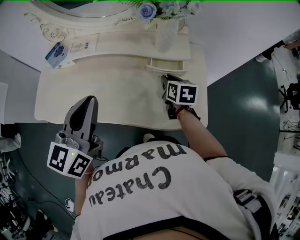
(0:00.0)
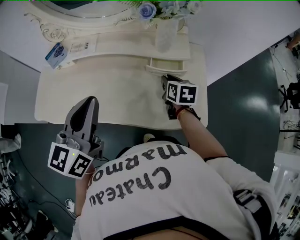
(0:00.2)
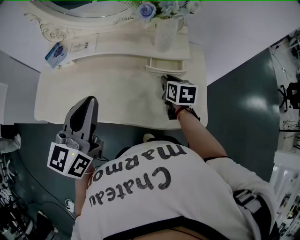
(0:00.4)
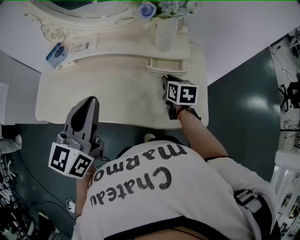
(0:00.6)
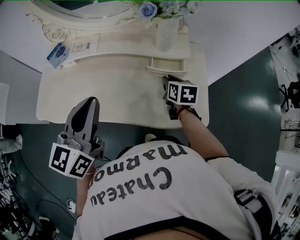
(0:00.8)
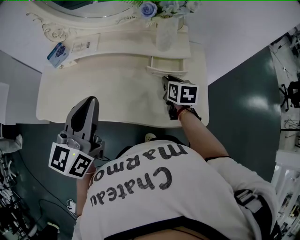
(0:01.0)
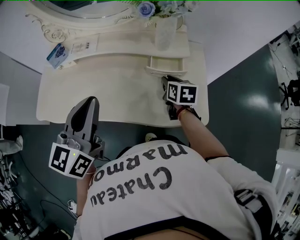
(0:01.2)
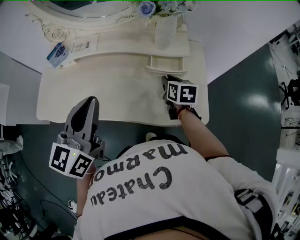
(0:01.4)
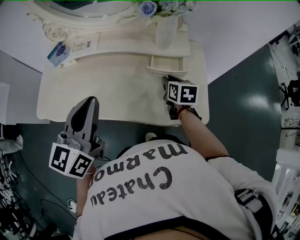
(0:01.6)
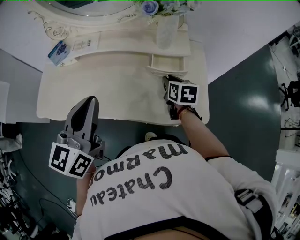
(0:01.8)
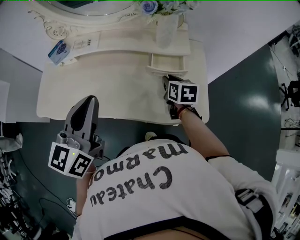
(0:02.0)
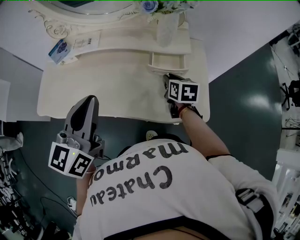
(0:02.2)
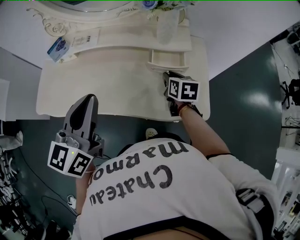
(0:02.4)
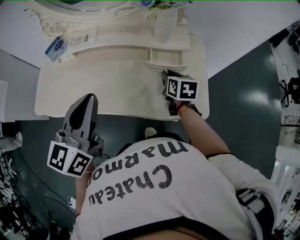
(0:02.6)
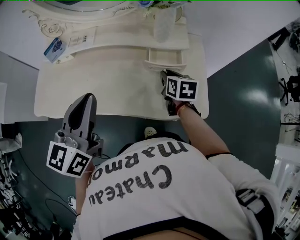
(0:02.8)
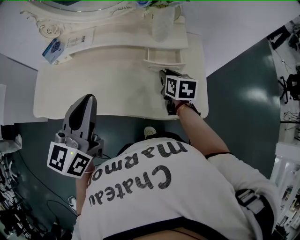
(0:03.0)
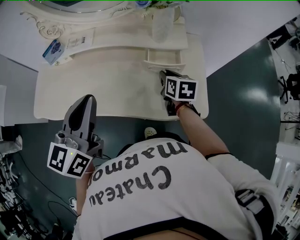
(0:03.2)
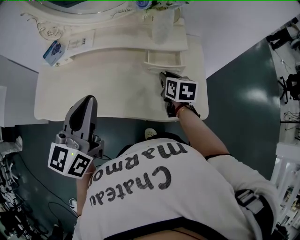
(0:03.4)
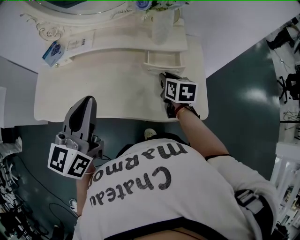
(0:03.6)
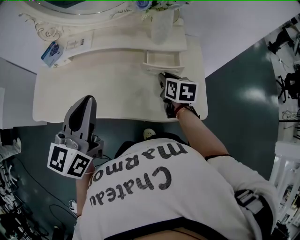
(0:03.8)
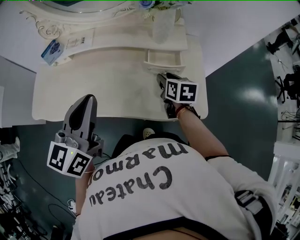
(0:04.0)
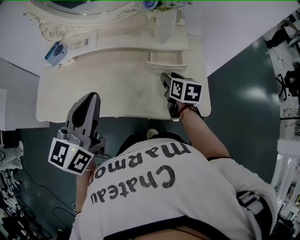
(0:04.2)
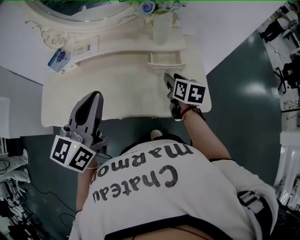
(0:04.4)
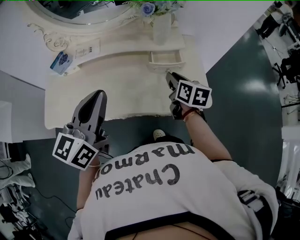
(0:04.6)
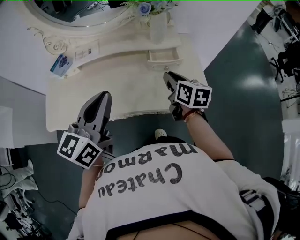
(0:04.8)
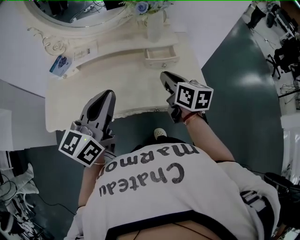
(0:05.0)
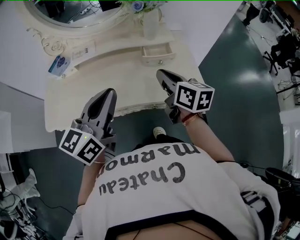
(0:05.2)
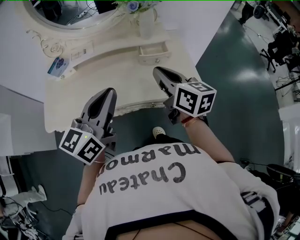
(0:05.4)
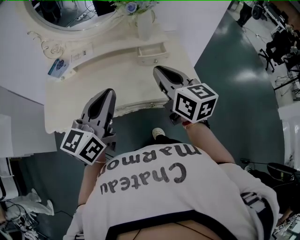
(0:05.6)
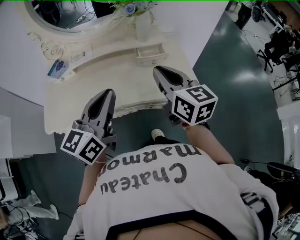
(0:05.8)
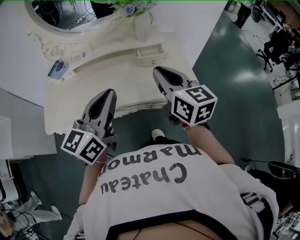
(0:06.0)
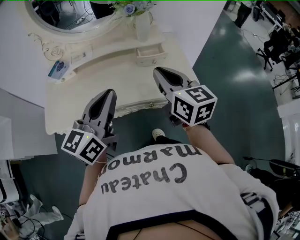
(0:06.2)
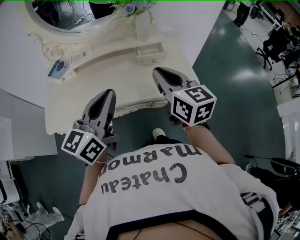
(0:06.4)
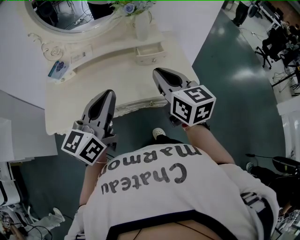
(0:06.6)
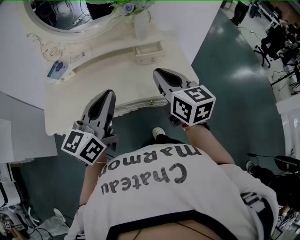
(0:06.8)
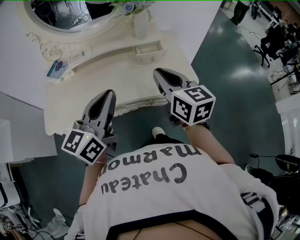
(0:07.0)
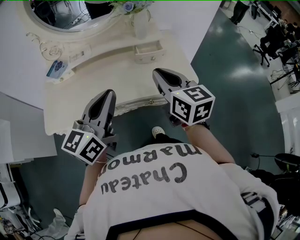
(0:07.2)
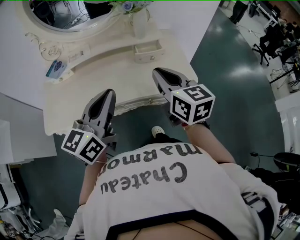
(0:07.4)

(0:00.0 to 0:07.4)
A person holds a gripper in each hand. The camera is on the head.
0:00.0 - 0:01.4: There are only small adjustments of the grippers.
0:01.4 - 0:03.0: Both grippers stay about where they are.
0:03.0 - 0:04.4: The right gripper ends up approximately 5 cm from where it was.
0:04.4 - 0:06.0: The right gripper is displaced upward and backward by approximately 25 cm, changes its angle by roughly 30 degrees, and closes up. The left gripper shifts some 10 cm backward.
0:06.0 - 0:07.4: There are only small adjustments of the grippers.

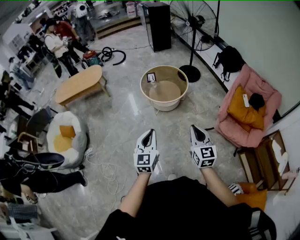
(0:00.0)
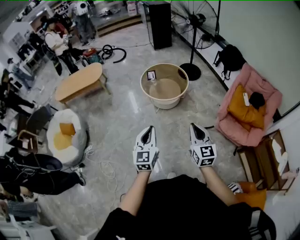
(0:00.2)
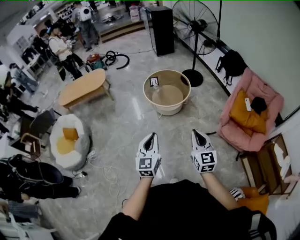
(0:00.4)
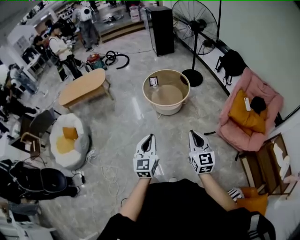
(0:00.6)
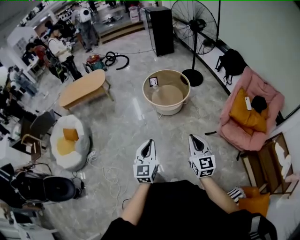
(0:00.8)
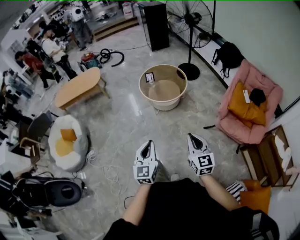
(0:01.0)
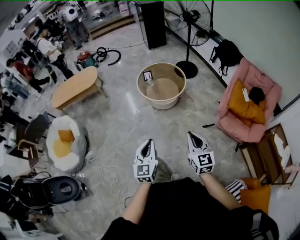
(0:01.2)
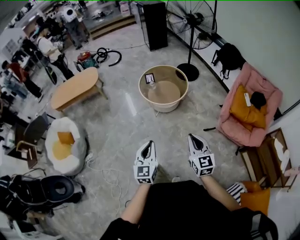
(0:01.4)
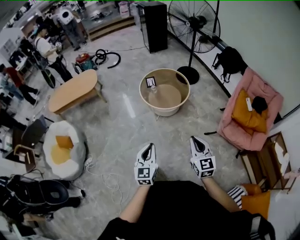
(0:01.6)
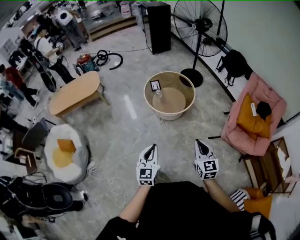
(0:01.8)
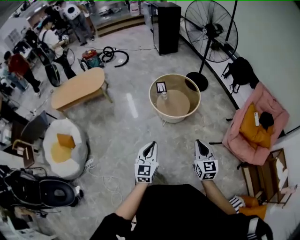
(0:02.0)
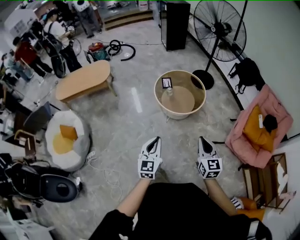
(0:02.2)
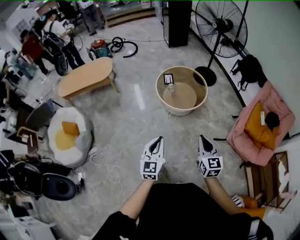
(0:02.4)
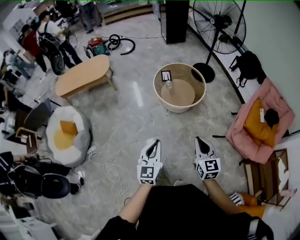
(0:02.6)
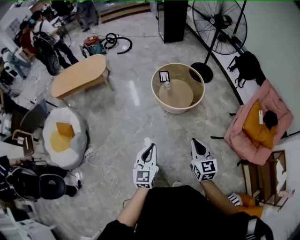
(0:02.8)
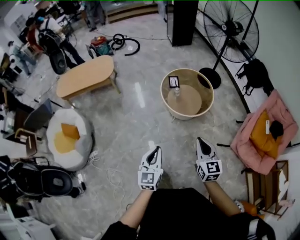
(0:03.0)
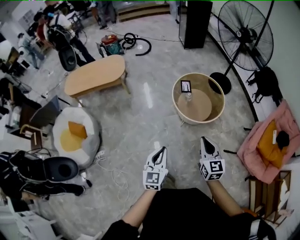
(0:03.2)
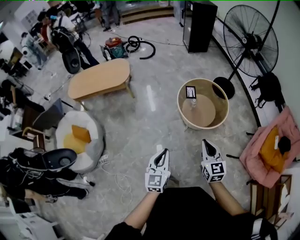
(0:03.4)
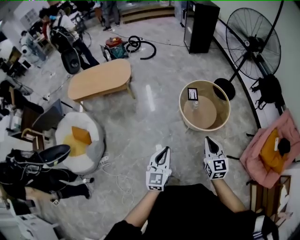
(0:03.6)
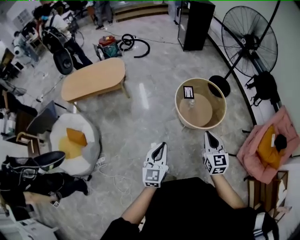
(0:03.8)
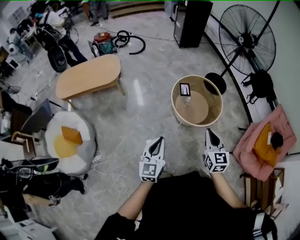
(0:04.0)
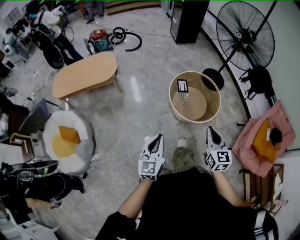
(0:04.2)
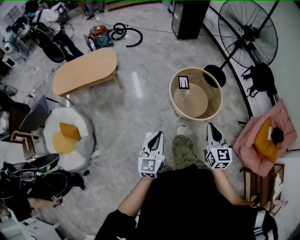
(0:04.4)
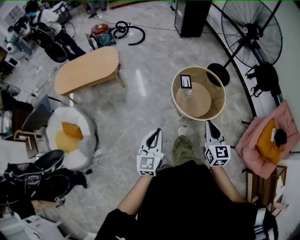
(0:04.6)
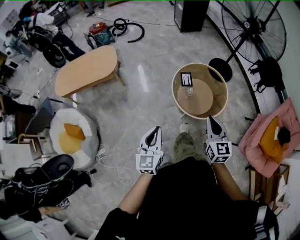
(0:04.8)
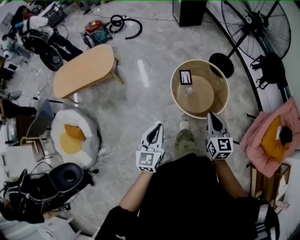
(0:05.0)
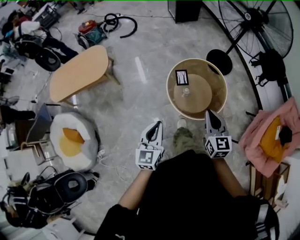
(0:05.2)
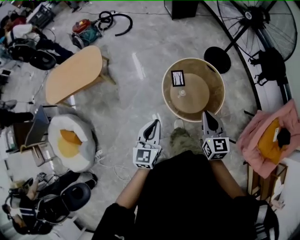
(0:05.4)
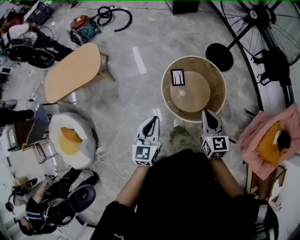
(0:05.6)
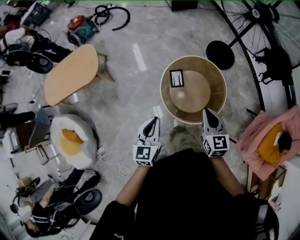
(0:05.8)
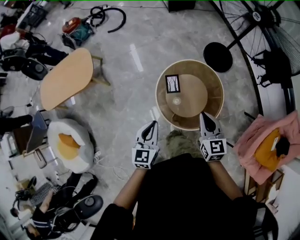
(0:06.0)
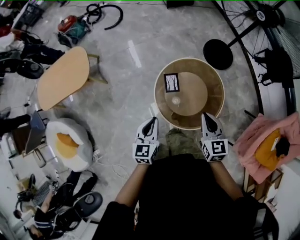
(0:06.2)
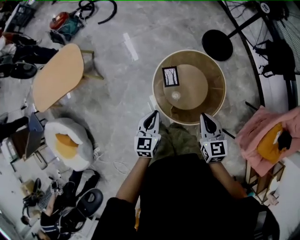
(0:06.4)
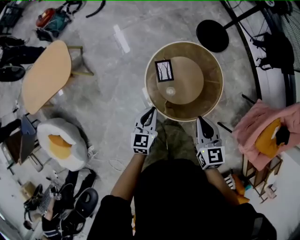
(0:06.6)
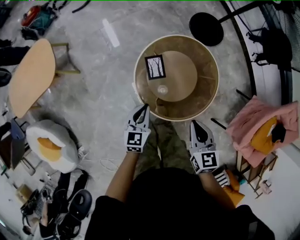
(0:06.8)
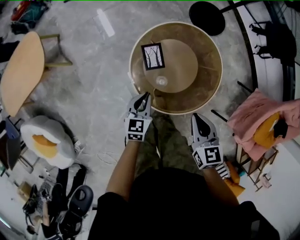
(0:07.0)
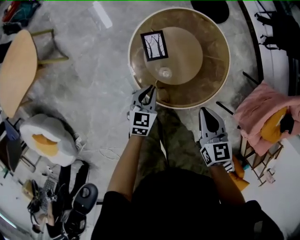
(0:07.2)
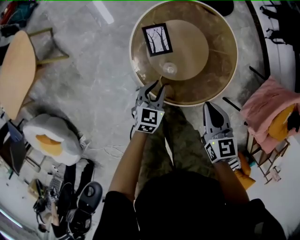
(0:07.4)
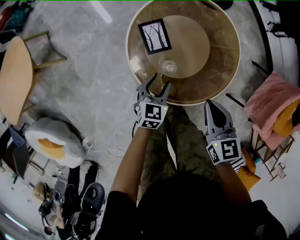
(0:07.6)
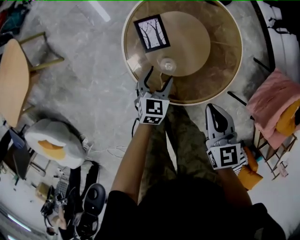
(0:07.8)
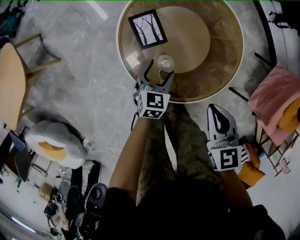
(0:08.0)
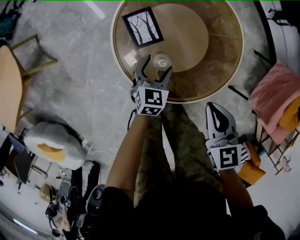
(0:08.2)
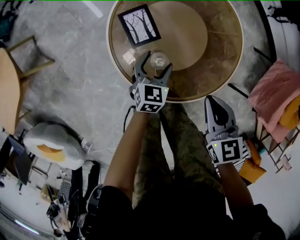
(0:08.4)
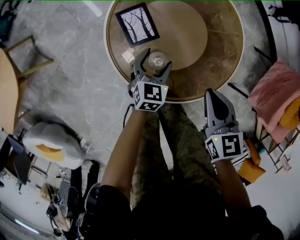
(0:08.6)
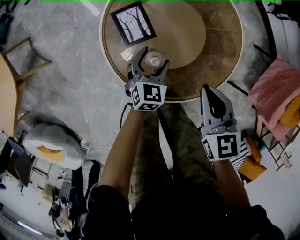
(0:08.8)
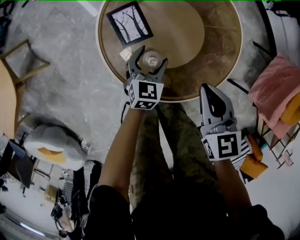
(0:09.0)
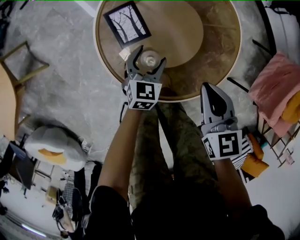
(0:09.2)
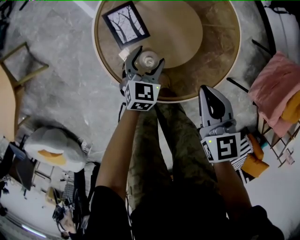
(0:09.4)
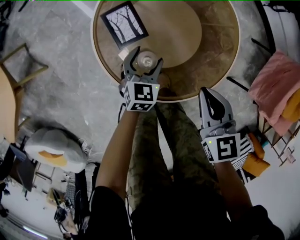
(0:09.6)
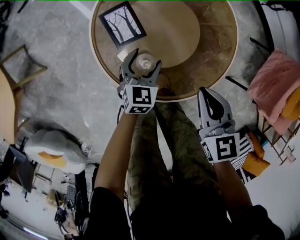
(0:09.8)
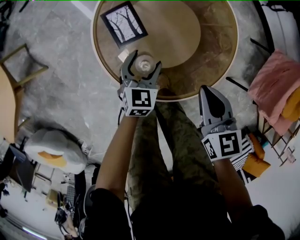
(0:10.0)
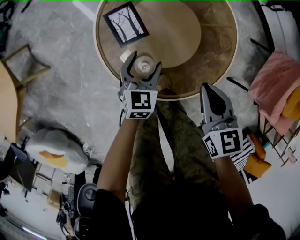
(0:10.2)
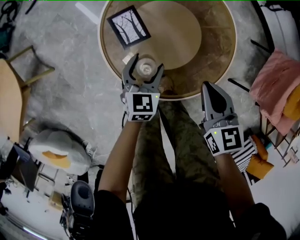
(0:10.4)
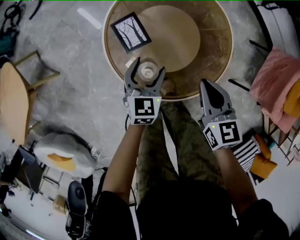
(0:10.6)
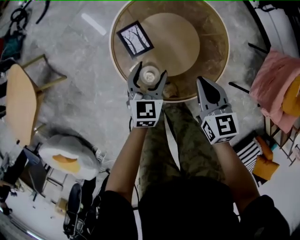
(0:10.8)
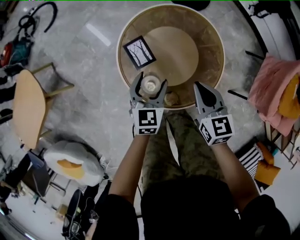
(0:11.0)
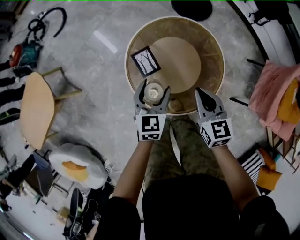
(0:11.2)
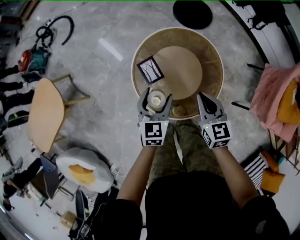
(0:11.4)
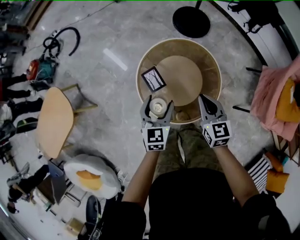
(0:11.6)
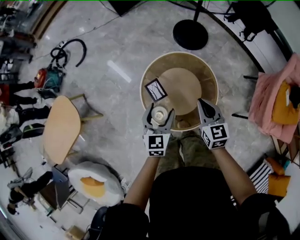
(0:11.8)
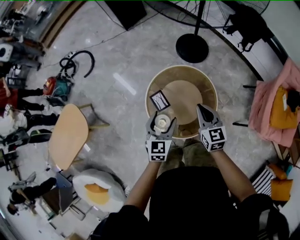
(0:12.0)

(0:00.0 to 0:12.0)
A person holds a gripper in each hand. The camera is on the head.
0:00.0 - 0:01.6: The right gripper travels forward and to the left by approximately 10 cm. Meanwhile the left gripper goes roughly 10 cm to the left, forward and downward.
0:01.6 - 0:03.0: The left gripper swings forward and backward, some 10 cm each way, with 2 reversals; the right gripper is displaced forward and to the left by roughly 20 cm.
0:03.0 - 0:04.4: Both grippers travel together forward and to the left, about 20 cm.
0:04.4 - 0:06.0: The right gripper is displaced forward by approximately 35 cm. The left gripper heads forward and to the right, covering about 40 cm.
0:06.0 - 0:07.6: The two grippers go some 35 cm downward. The left gripper changes its angle by some 30 degrees, and opens its fingers.
0:07.6 - 0:09.0: The right gripper goes roughly 5 cm downward. Meanwhile the left gripper goes approximately 10 cm downward and forward, and opens up.
0:09.0 - 0:10.4: The left gripper travels upward by about 5 cm.
0:10.4 - 0:12.0: The grippers both shift upward by some 35 cm.

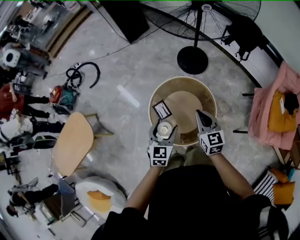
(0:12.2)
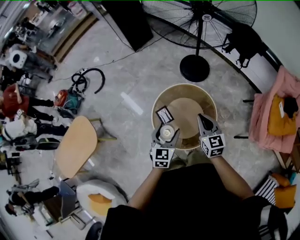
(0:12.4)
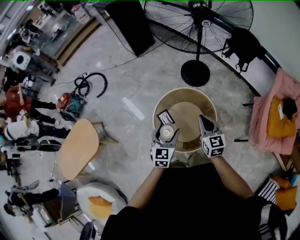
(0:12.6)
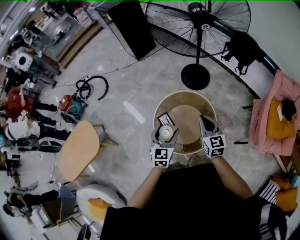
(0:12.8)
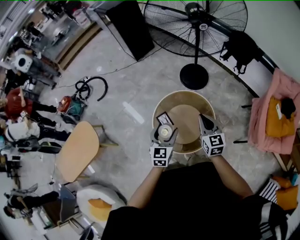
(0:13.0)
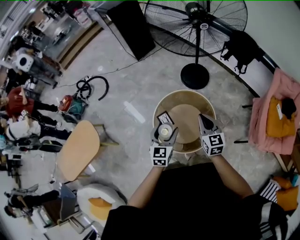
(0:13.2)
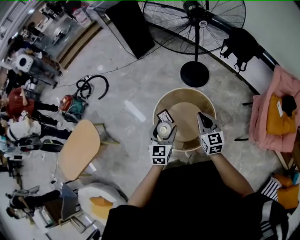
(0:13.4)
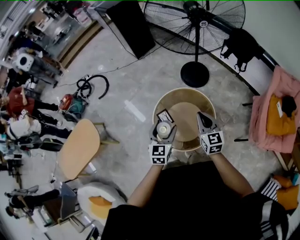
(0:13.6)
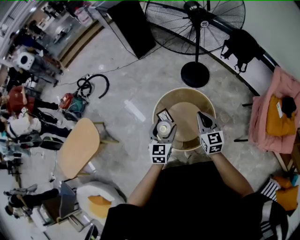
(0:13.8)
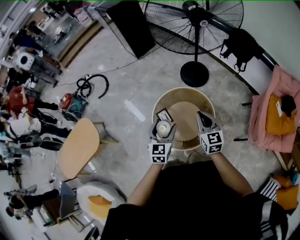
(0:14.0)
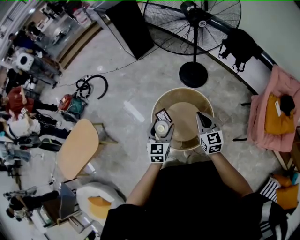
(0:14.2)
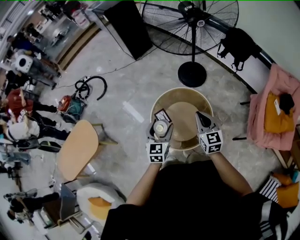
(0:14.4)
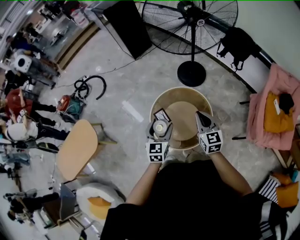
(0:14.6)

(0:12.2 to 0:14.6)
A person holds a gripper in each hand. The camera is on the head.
0:12.2 - 0:13.4: The two grippers go approximately 5 cm upward.
0:13.4 - 0:14.6: The grippers make only small movements.

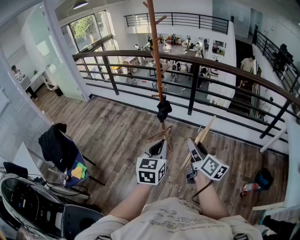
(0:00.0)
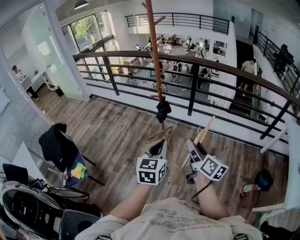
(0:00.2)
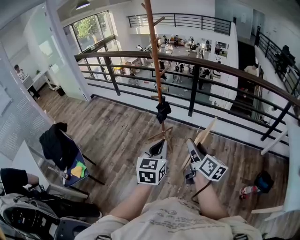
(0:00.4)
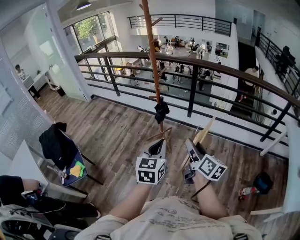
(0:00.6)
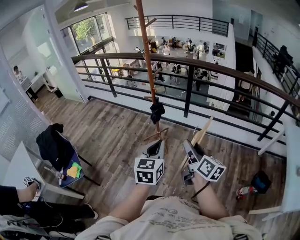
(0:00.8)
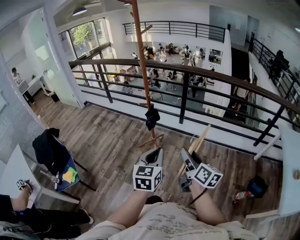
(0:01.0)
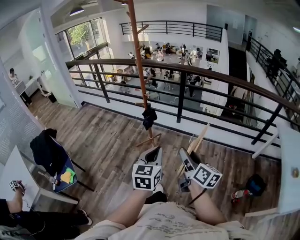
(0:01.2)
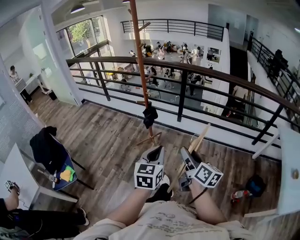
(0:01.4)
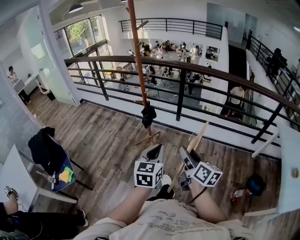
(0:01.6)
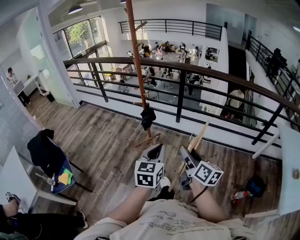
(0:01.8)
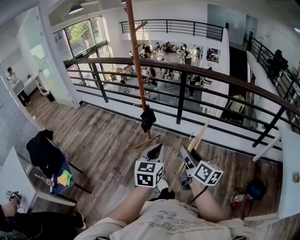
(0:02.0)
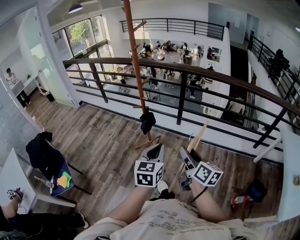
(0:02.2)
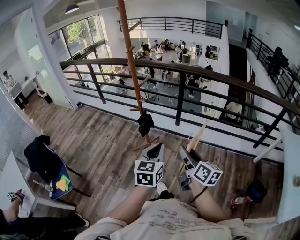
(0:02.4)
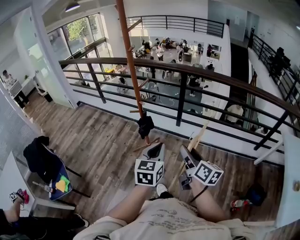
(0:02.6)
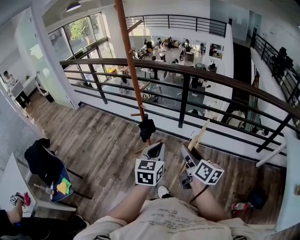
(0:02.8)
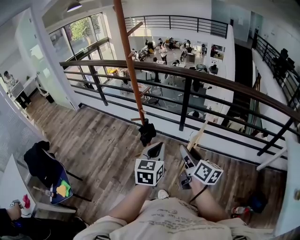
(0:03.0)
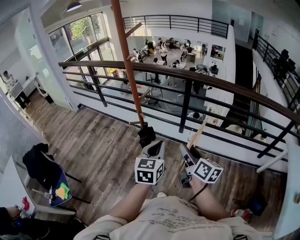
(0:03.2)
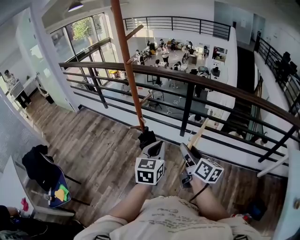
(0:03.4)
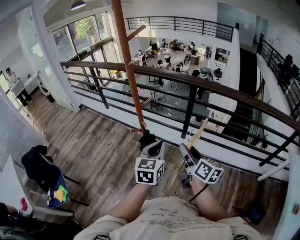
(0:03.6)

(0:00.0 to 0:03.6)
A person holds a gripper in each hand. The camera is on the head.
0:00.0 - 0:01.8: The grippers both shift to the right by roughly 10 cm.
0:01.8 - 0:03.6: Both grippers travel together forward, approximately 35 cm.
